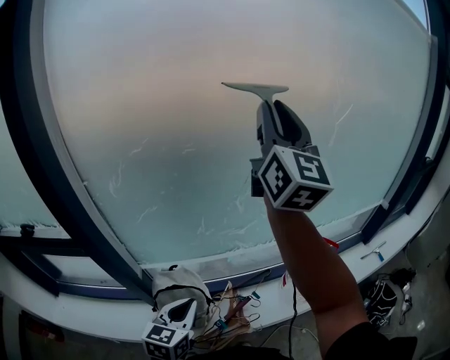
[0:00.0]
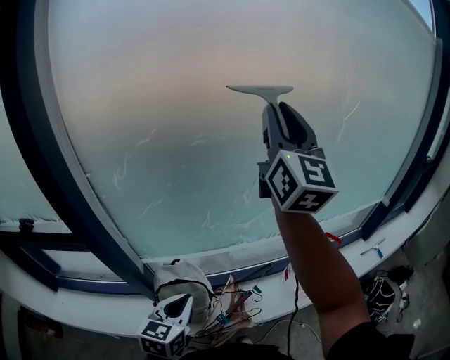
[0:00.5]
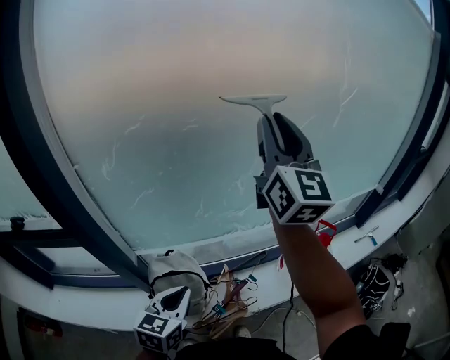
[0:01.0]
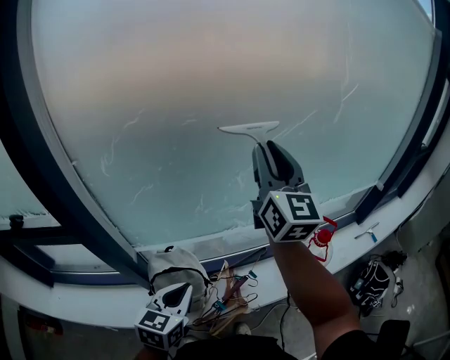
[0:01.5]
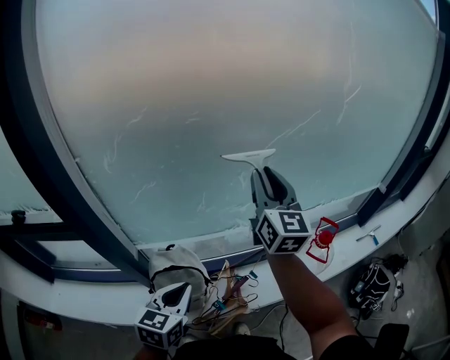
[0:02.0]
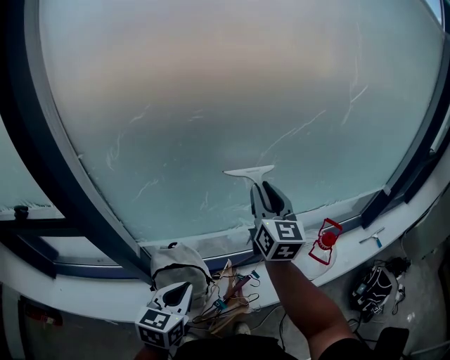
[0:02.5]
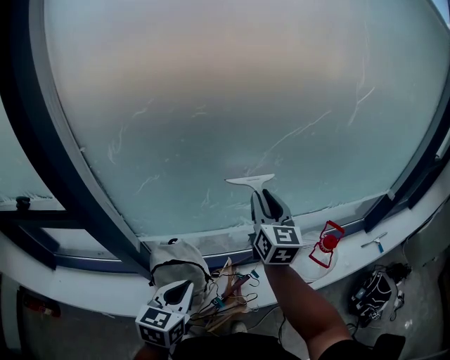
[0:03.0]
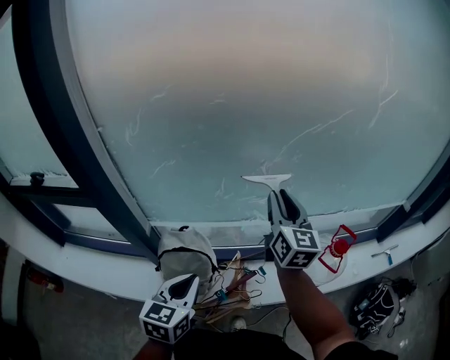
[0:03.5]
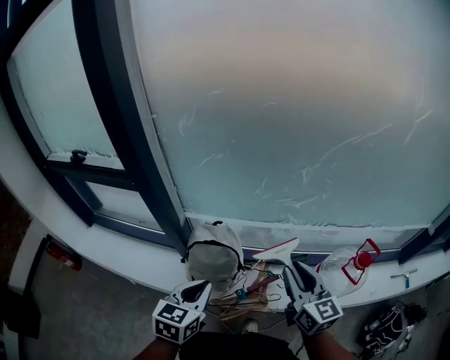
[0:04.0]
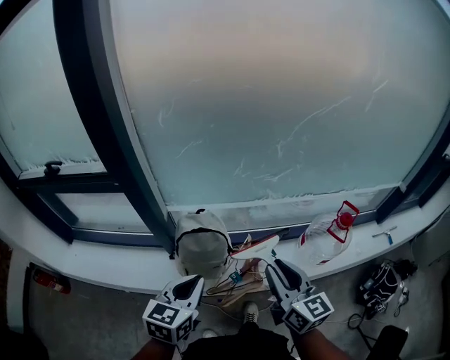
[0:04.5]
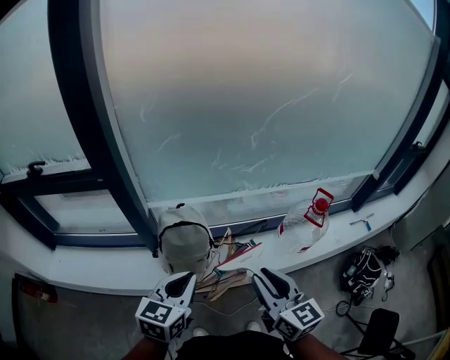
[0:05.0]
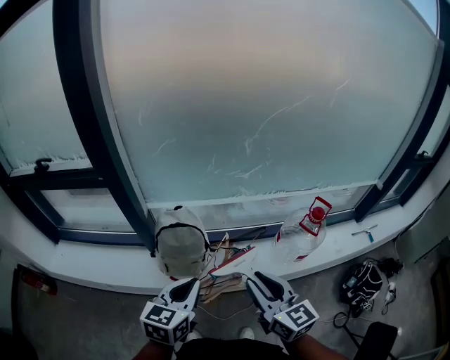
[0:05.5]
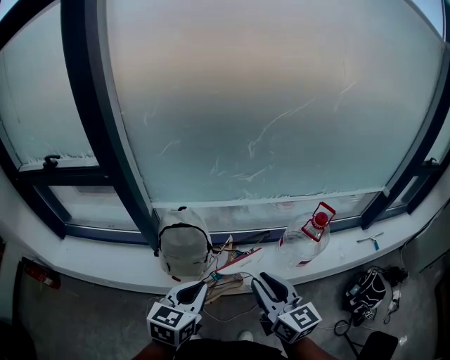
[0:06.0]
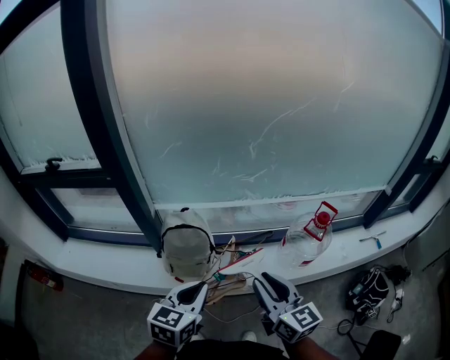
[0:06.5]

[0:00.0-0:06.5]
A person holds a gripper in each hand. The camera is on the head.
0:00.0 to 0:02.0: The right gripper travels downward by approximately 25 cm, and swivels roughly 20 degrees.
0:02.0 to 0:04.5: The right gripper moves backward and downward, roughly 35 cm, and rotates roughly 30 degrees. Meanwhile the left gripper heads backward, covering about 15 cm.
0:04.5 to 0:06.5: The right gripper travels backward and to the right by some 10 cm, while the left gripper moves to the right and backward, approximately 10 cm.

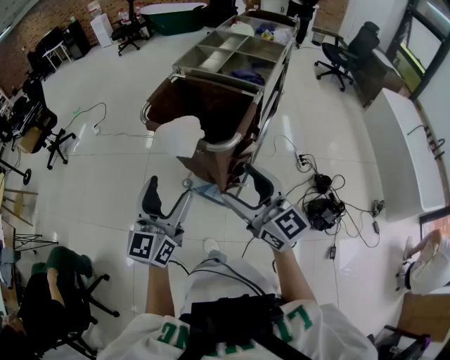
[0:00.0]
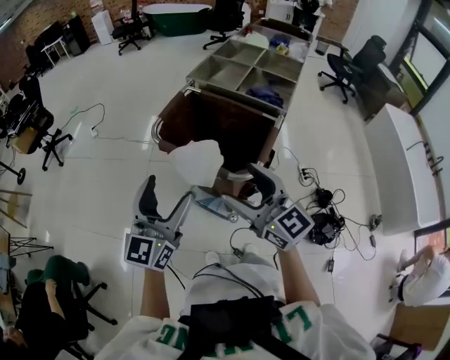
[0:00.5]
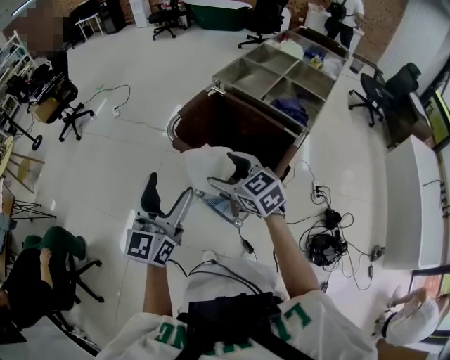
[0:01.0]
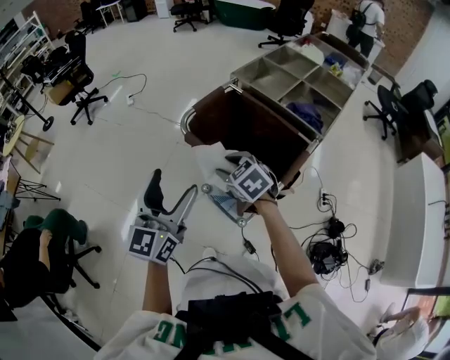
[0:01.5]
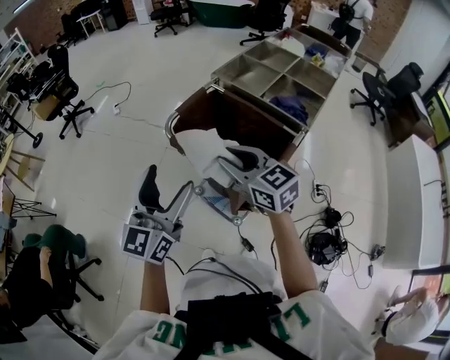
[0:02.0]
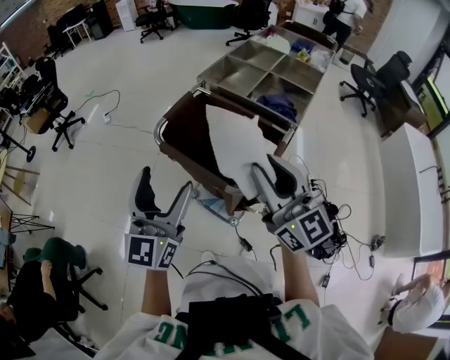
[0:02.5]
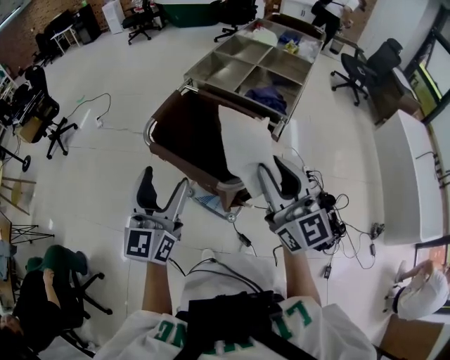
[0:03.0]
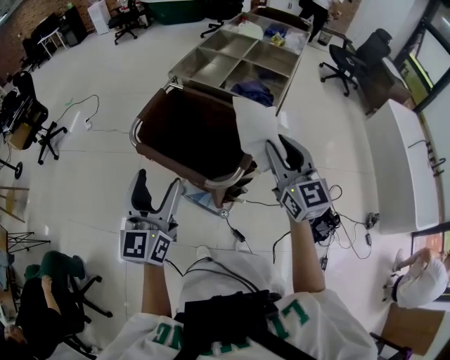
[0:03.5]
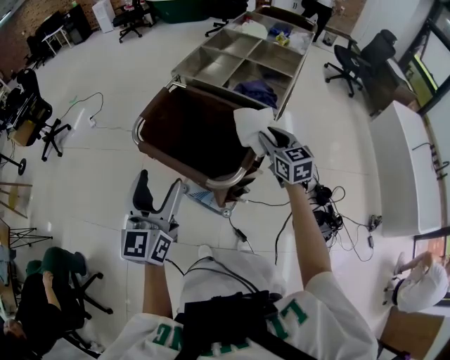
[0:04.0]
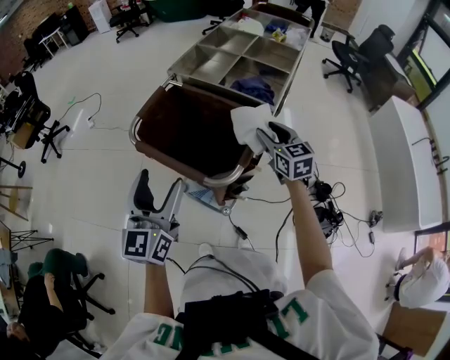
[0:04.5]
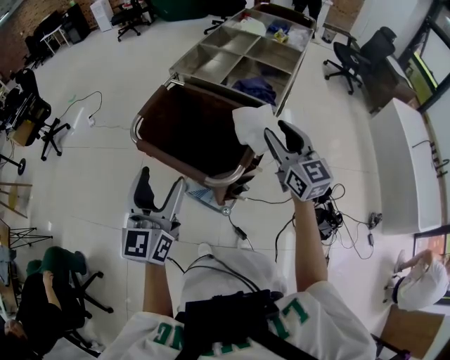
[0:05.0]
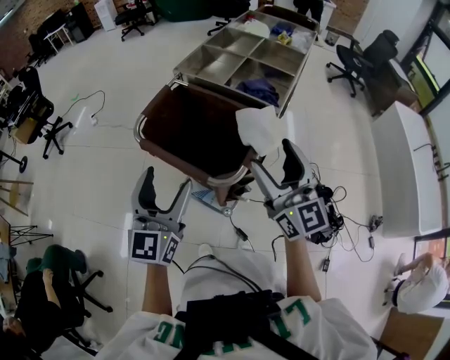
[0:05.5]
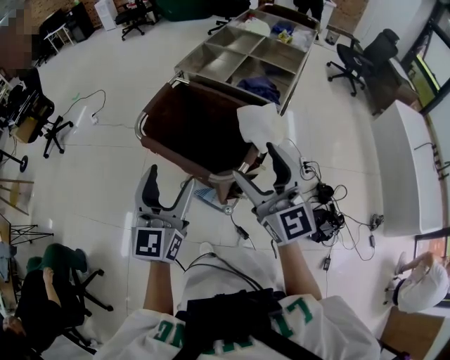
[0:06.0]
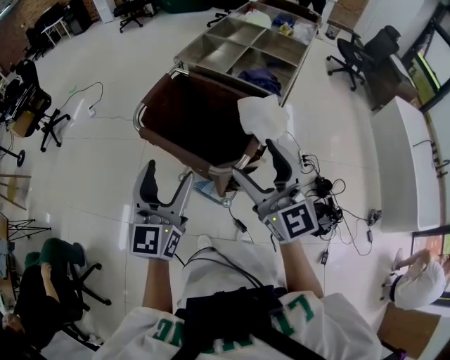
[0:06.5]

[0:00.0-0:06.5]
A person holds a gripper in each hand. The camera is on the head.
0:00.0 to 0:02.0: The right gripper is displaced forward by about 25 cm, swivels approximately 30 degrees, and closes. Meanwhile the left gripper travels forward by roughly 15 cm.
0:02.0 to 0:04.5: The right gripper shifts approximately 25 cm to the right, and turns by about 30 degrees. Meanwhile the left gripper travels to the right by approximately 5 cm.
0:04.5 to 0:06.5: The right gripper goes approximately 25 cm backward, upward and to the left, rotates roughly 30 degrees, and opens its fingers.

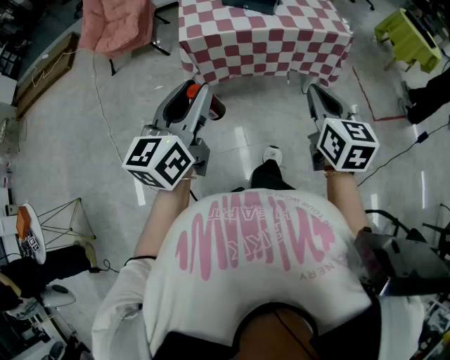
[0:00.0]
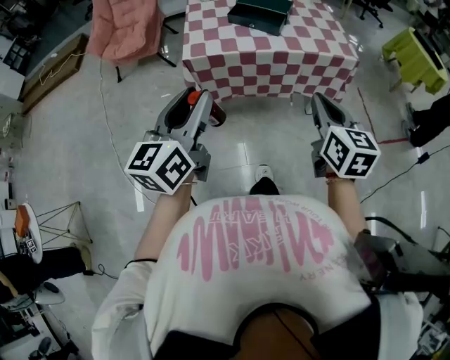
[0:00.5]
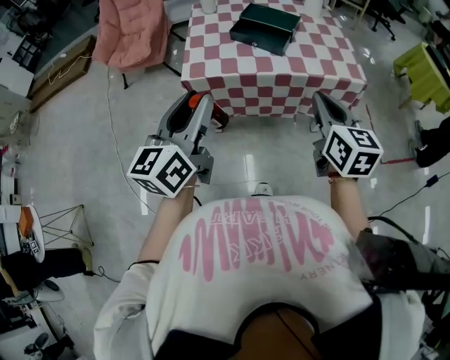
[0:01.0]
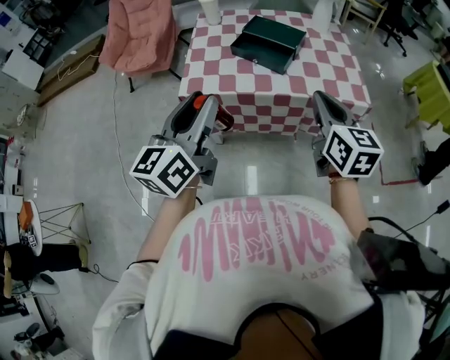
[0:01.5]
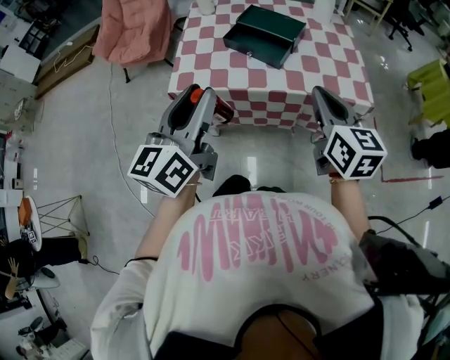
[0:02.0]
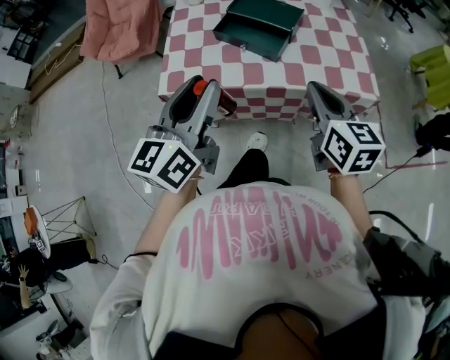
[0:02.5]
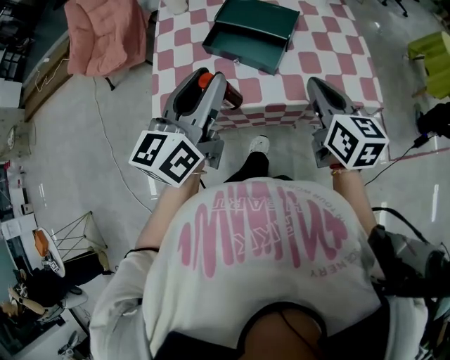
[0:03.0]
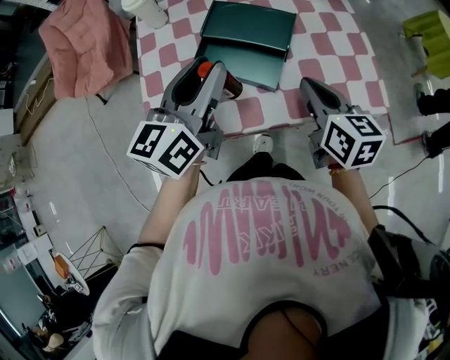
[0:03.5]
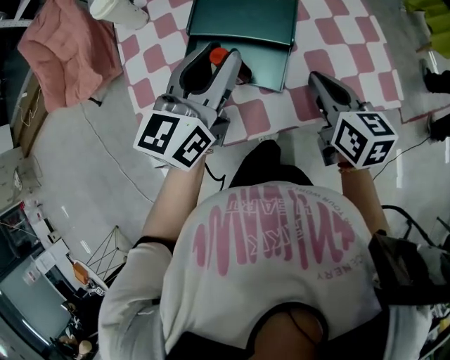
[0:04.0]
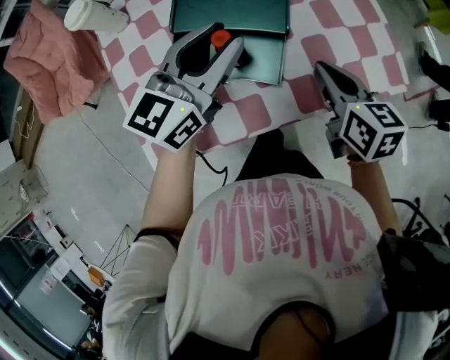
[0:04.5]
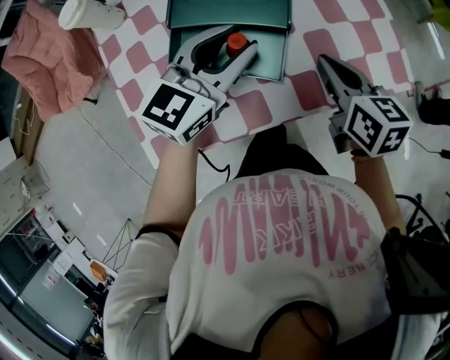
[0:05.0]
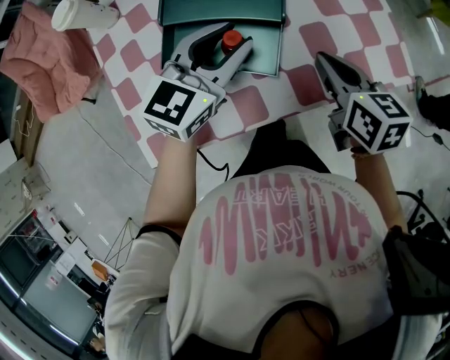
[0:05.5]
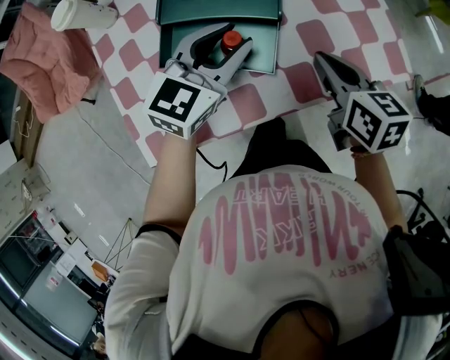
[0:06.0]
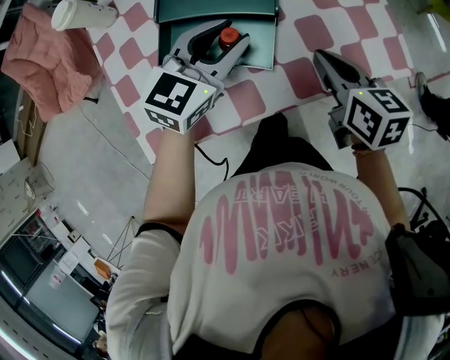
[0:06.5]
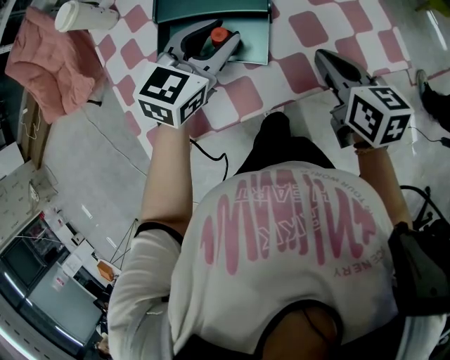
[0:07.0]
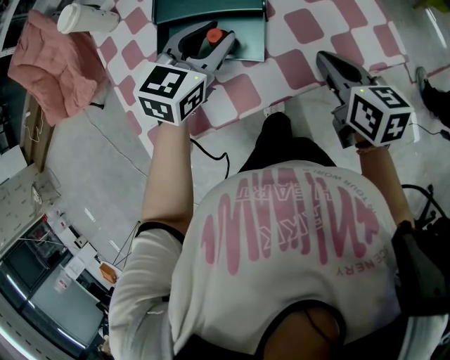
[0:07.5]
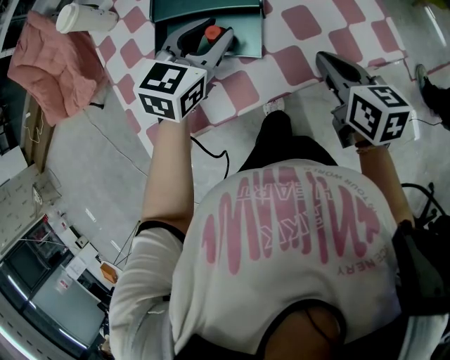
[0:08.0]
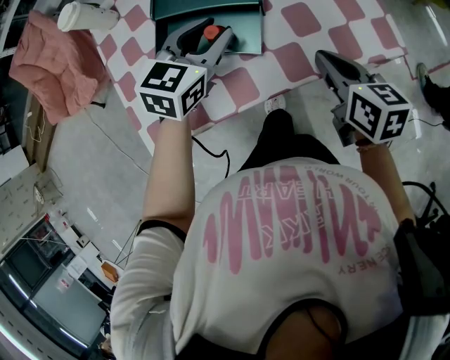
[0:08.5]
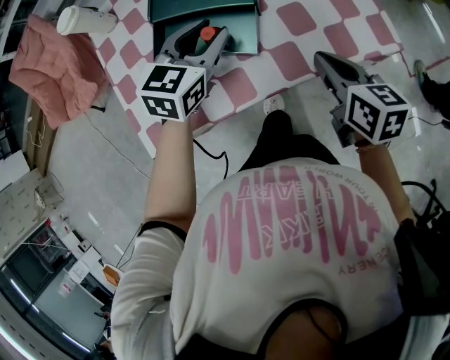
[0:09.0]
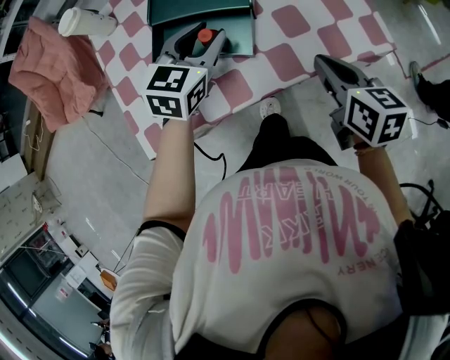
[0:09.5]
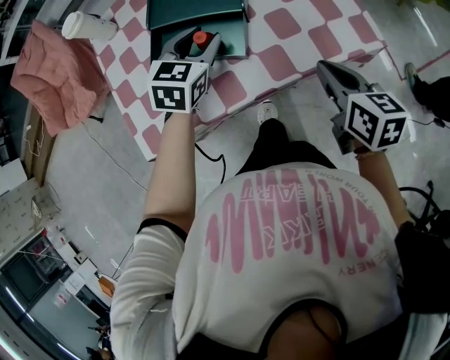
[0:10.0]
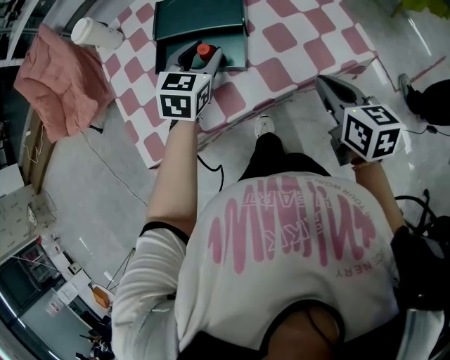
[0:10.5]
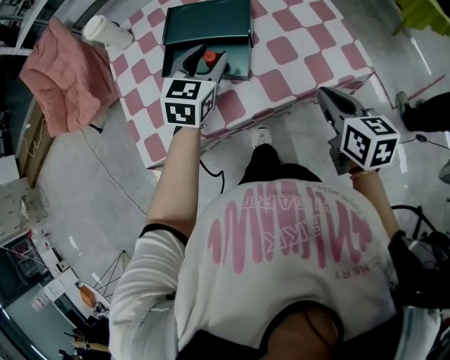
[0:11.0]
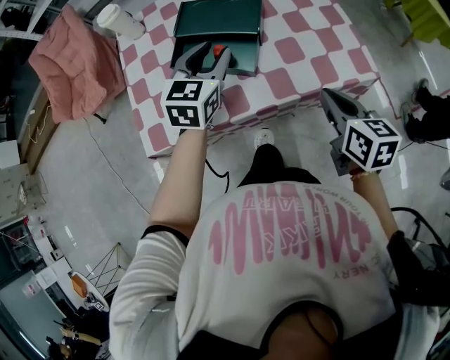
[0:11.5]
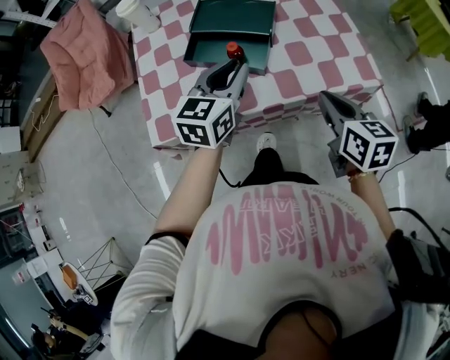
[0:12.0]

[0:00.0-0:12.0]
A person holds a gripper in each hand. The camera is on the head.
0:00.0 to 0:02.0: The right gripper travels forward by about 30 cm; the left gripper moves forward and to the right, about 30 cm.
0:02.0 to 0:04.0: The left gripper travels forward by roughly 35 cm, and swivels about 30 degrees. The right gripper goes roughly 30 cm forward and downward, and swivels approximately 20 degrees.
0:04.0 to 0:06.0: The right gripper moves about 5 cm; the left gripper moves downward and to the right, roughly 10 cm, and rotates some 30 degrees.
0:06.0 to 0:08.0: The right gripper shifts by approximately 5 cm.
0:08.0 to 0:10.0: The right gripper ends up approximately 5 cm from where it was.
0:10.0 to 0:12.0: The left gripper heads backward and upward, covering about 10 cm, and rotates approximately 20 degrees. The right gripper shifts by about 5 cm.

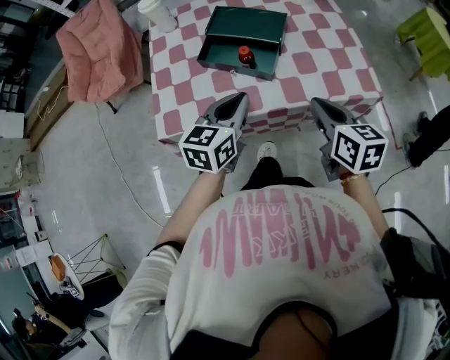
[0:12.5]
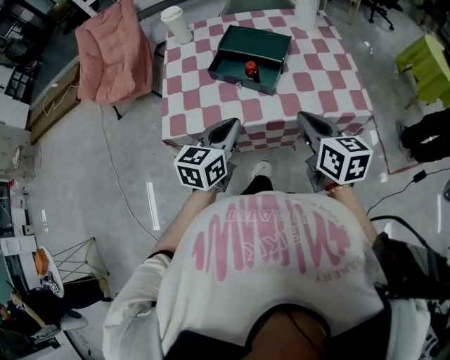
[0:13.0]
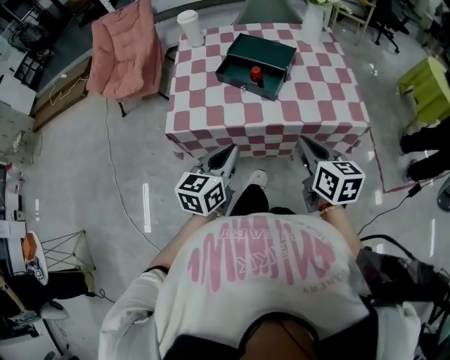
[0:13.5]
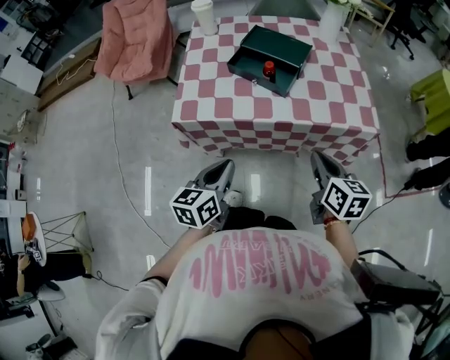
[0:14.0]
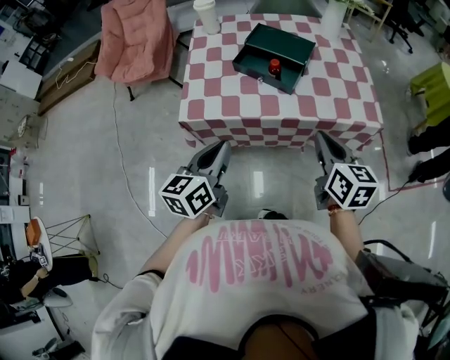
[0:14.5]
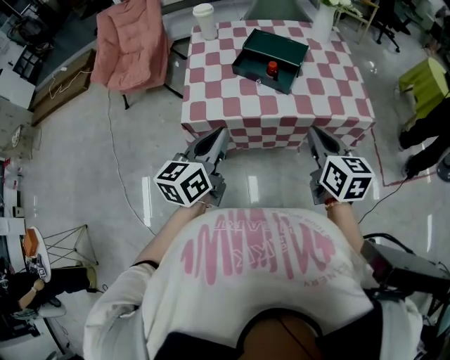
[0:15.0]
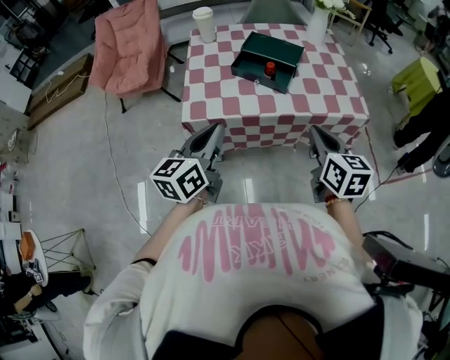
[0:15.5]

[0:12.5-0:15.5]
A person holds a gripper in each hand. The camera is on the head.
0:12.5 to 0:14.0: The left gripper travels backward by some 20 cm, and rotates roughly 20 degrees. The right gripper goes roughly 10 cm backward.
0:14.0 to 0:15.5: Both grippers move upward and to the left, roughly 15 cm.
